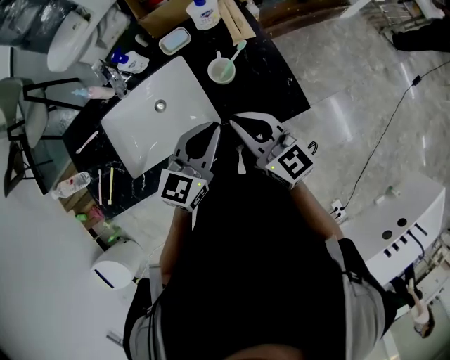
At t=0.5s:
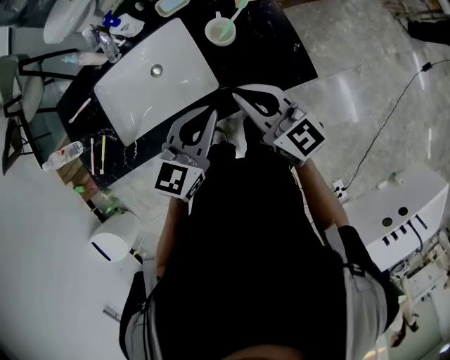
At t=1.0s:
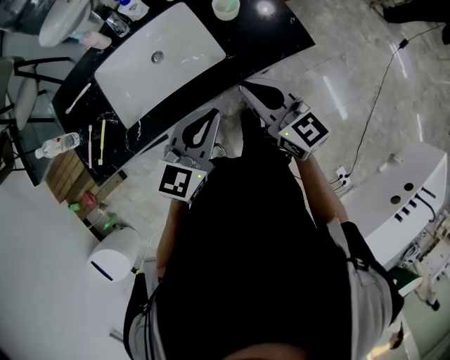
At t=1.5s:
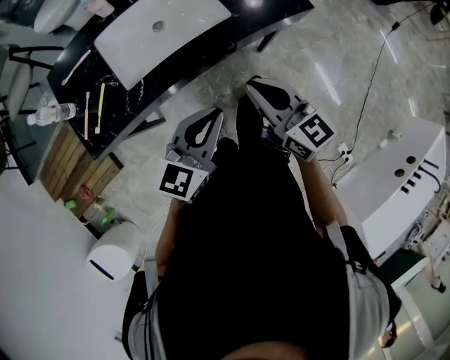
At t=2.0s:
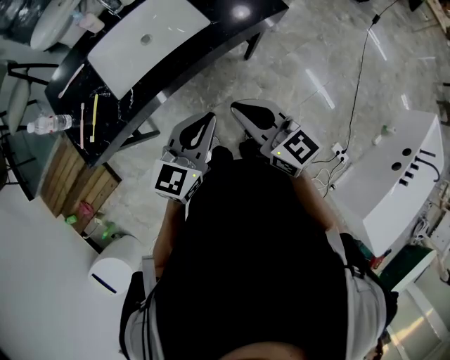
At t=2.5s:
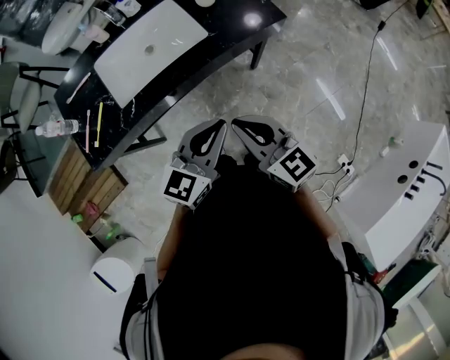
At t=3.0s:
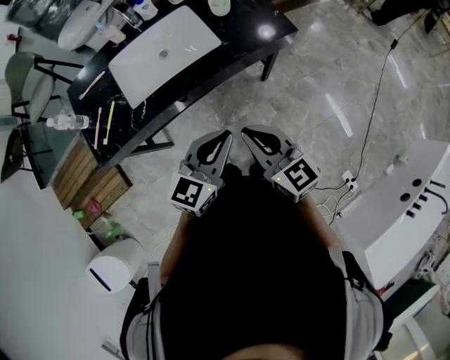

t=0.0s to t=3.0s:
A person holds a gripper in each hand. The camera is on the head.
t=0.0s to t=1.5s: The right gripper heads backward, covering about 25 cm. Meanwhile the left gripper heads backward and to the left, covering roughly 35 cm.
t=1.5s to t=3.0s: The right gripper goes some 10 cm backward. Meanwhile the left gripper goes roughly 5 cm to the right.

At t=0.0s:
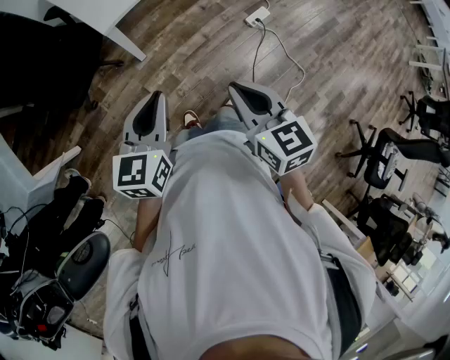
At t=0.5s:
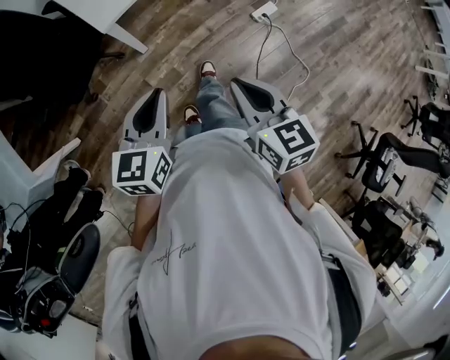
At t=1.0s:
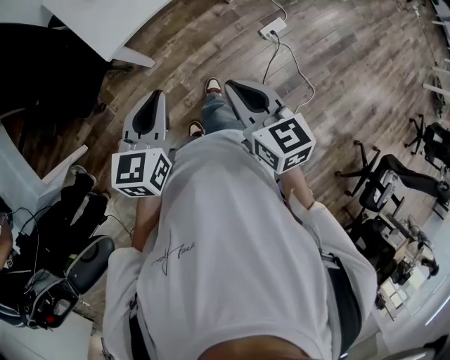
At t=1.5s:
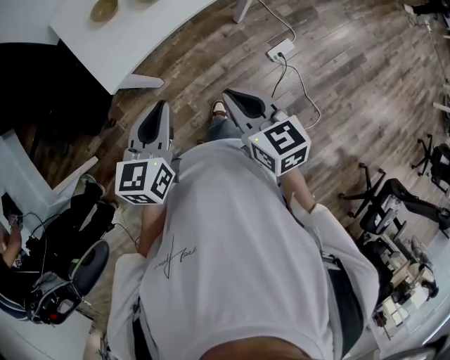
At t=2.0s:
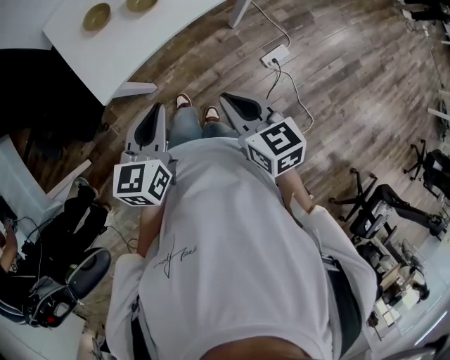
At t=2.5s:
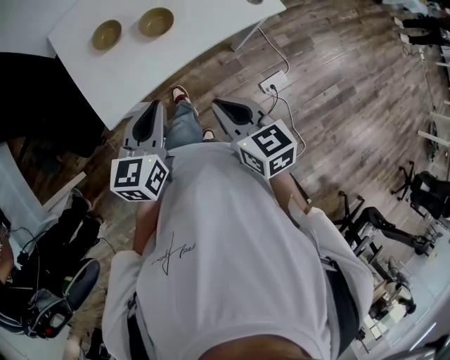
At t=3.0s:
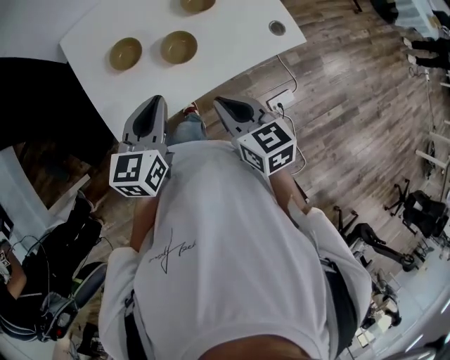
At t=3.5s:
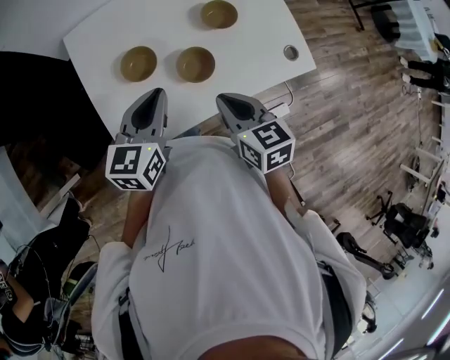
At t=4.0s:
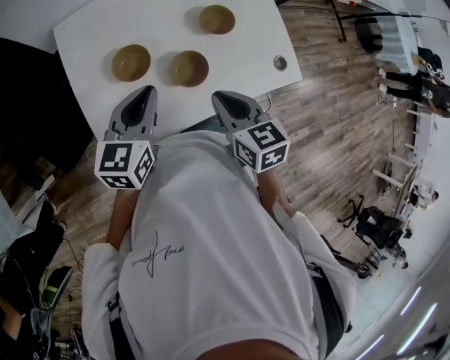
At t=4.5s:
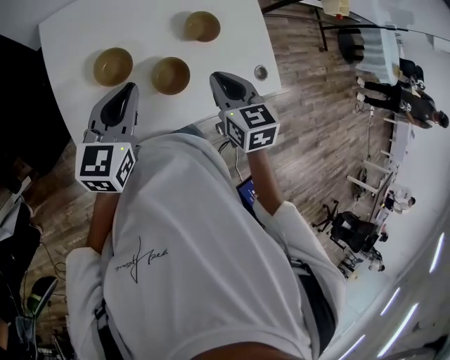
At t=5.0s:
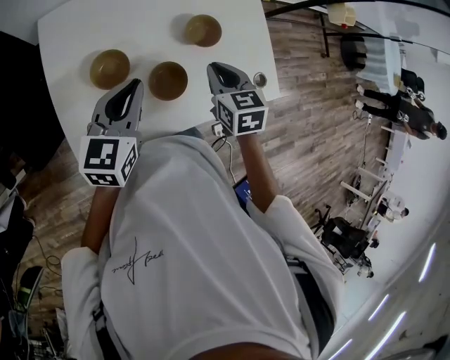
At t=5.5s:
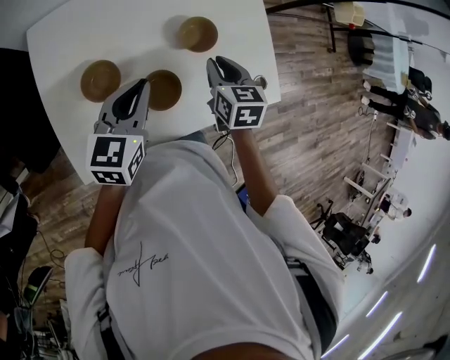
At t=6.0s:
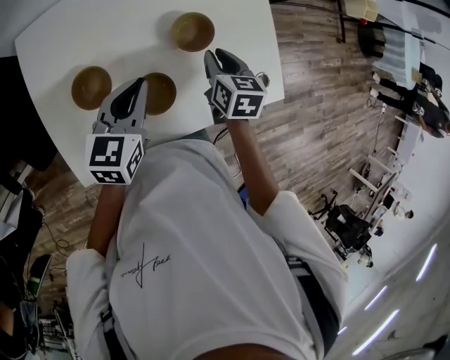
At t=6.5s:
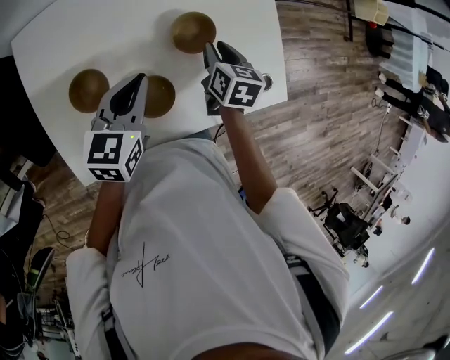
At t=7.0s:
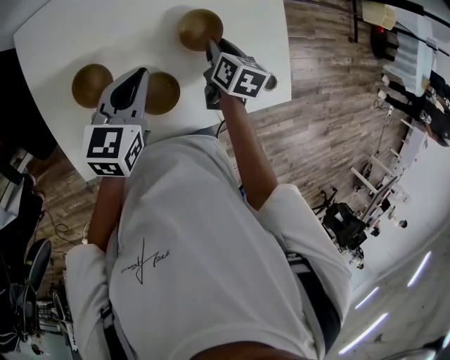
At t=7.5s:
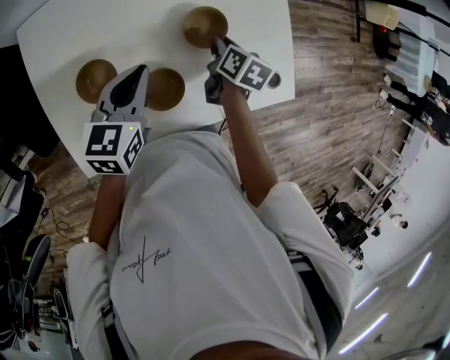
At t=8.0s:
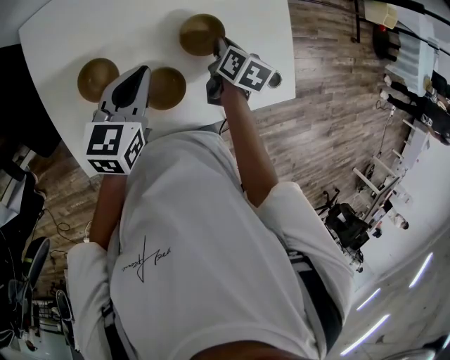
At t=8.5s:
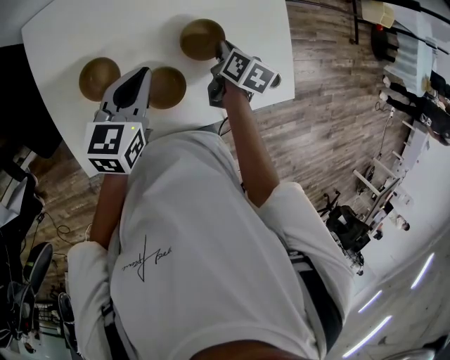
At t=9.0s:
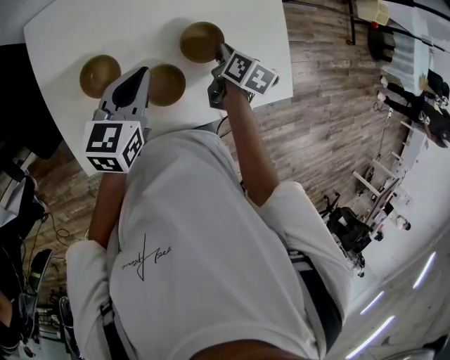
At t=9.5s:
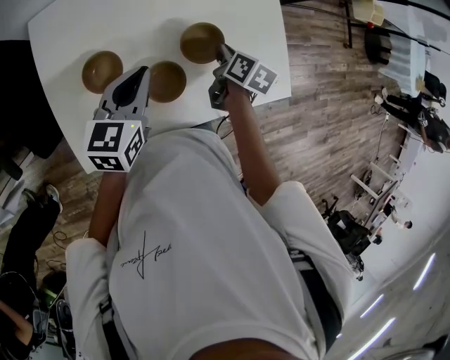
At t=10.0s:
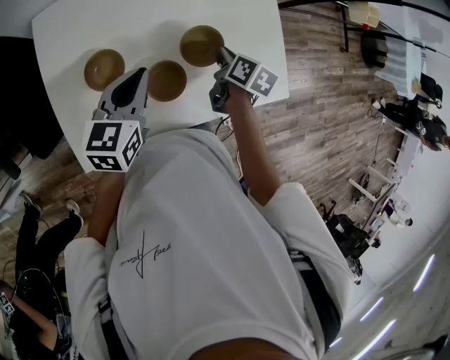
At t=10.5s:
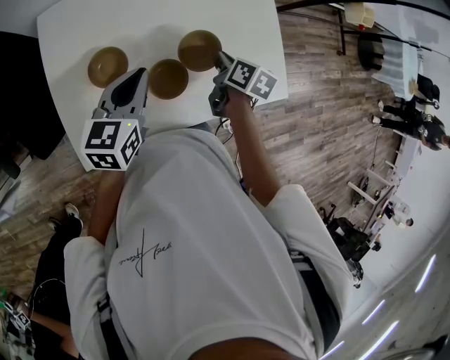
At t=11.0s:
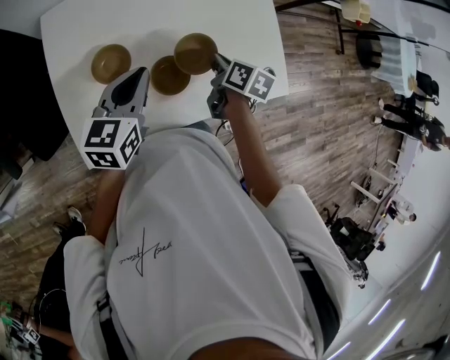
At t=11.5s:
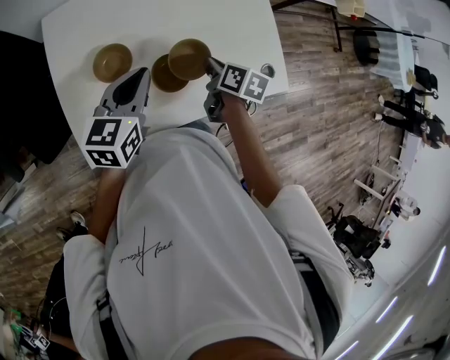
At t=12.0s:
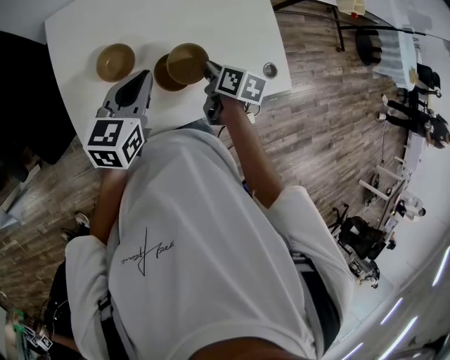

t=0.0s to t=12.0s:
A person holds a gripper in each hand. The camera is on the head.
t=0.0s to t=2.0s: The left gripper moves forward and to the right, approximately 25 cm. The right gripper heads forward, covering about 25 cm.
t=2.0s to t=4.0s: The grippers both shift forward by about 30 cm.
t=4.0s to t=6.0s: The right gripper is displaced forward, to the right and downward by about 25 cm, while the left gripper travels forward and to the right by approximately 10 cm.
t=6.0s to t=8.0s: The right gripper travels downward by roughly 5 cm, and changes its angle by approximately 20 degrees.
t=8.0s to t=10.0s: The grippers move only a little.
t=10.0s to t=12.0s: The right gripper shifts approximately 10 cm backward and to the left.

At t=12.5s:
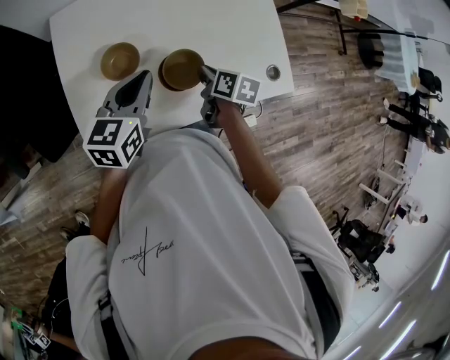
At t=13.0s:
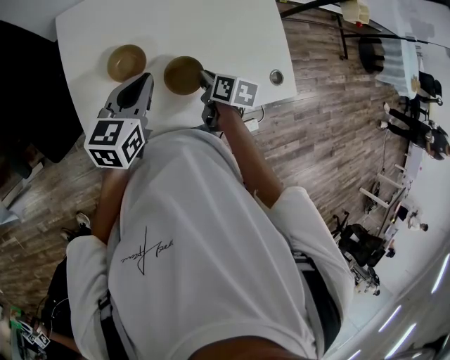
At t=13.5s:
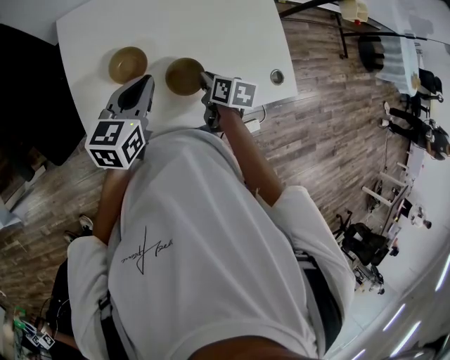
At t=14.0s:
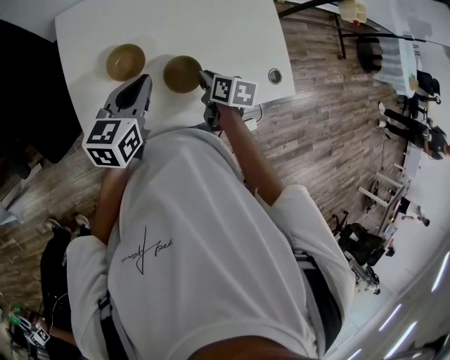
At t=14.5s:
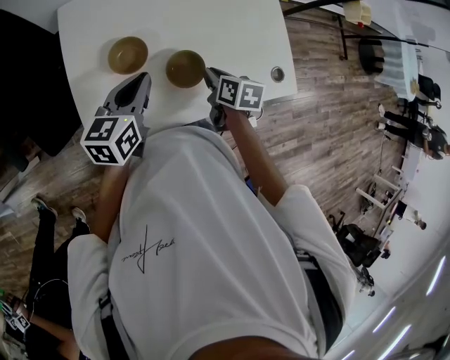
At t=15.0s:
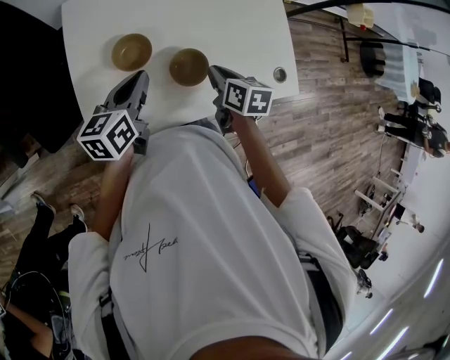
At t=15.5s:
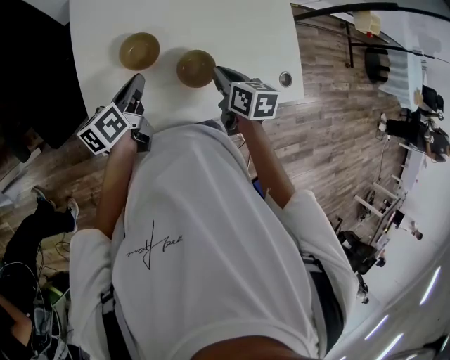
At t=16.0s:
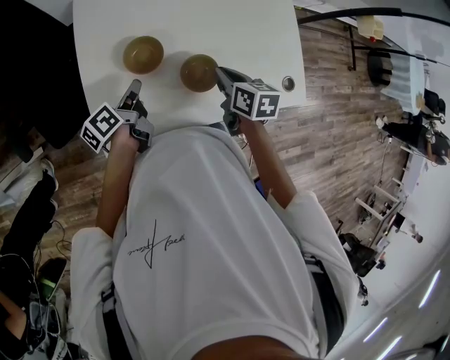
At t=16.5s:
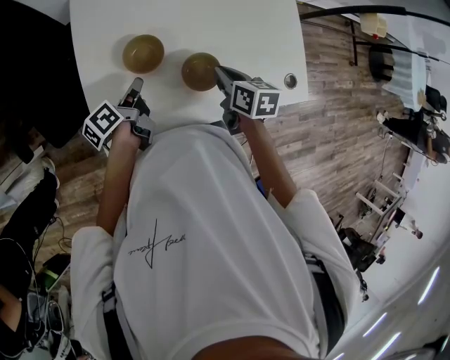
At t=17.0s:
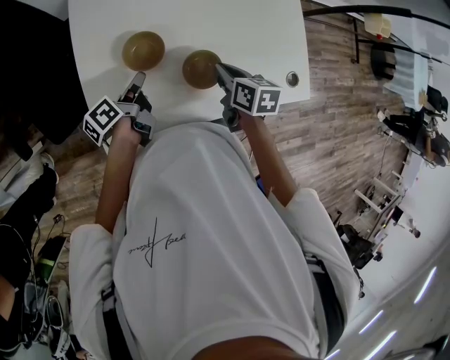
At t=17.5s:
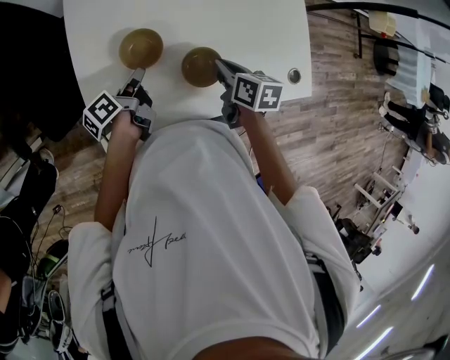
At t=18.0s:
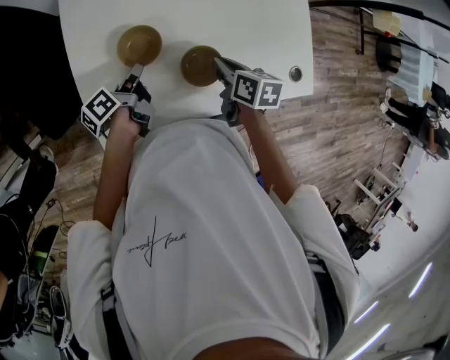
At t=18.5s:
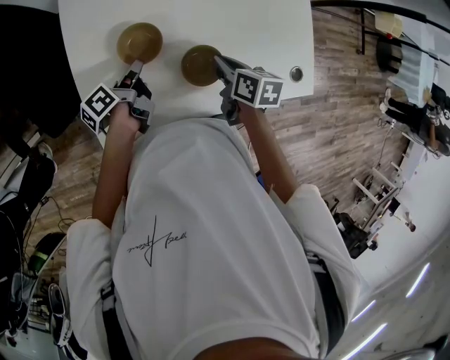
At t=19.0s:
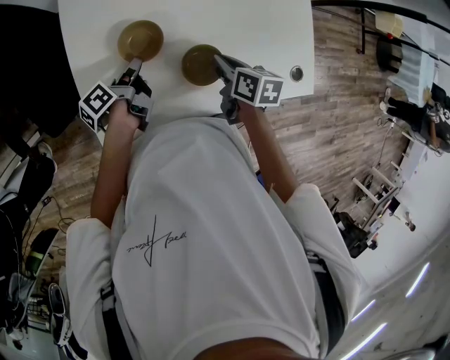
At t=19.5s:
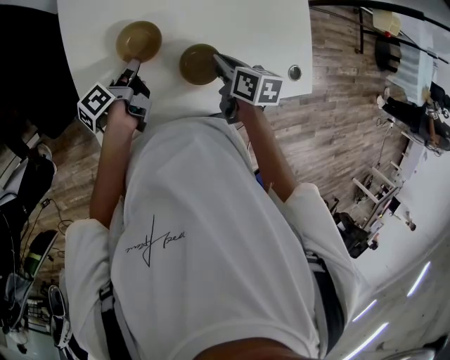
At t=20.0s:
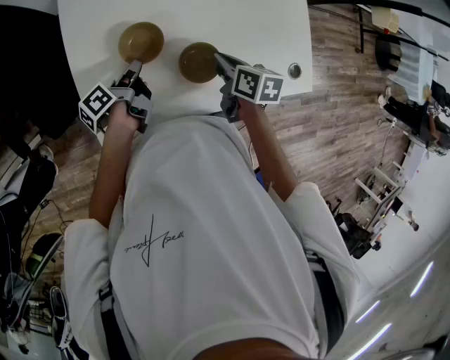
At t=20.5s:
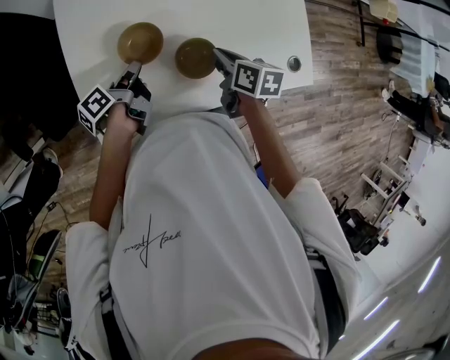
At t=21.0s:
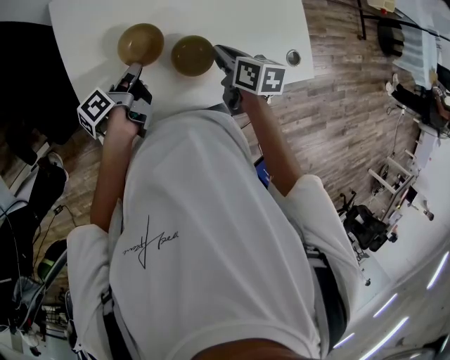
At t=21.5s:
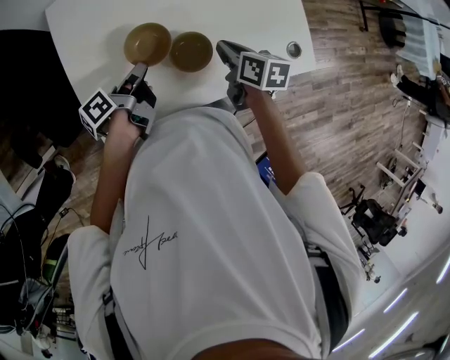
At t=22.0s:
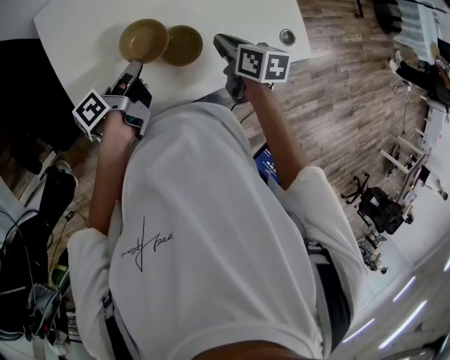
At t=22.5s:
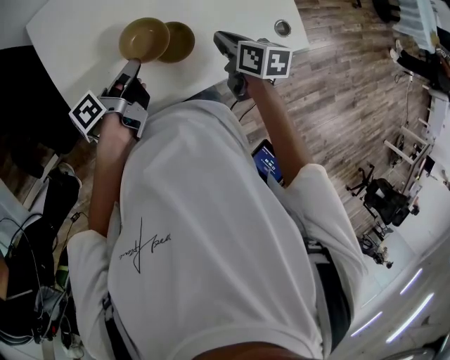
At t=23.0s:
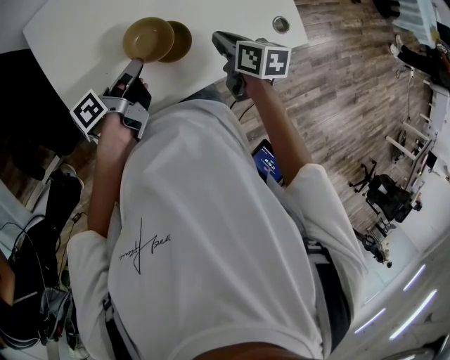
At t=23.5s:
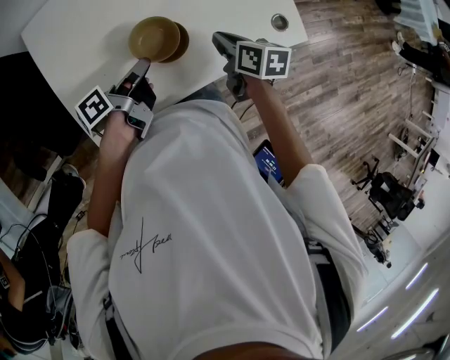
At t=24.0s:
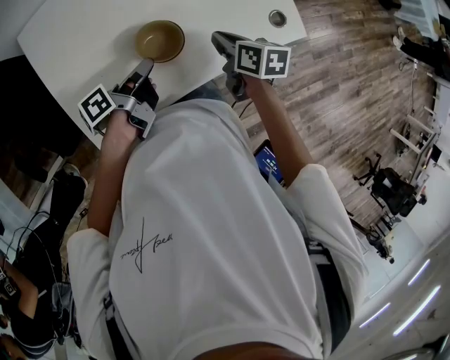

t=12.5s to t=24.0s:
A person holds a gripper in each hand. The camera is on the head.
t=12.5s to t=14.5s: There are only small adjustments of the grippers.
t=14.5s to t=16.5s: The left gripper travels downward and to the left by approximately 15 cm, and rotates around the line of its fingers by some 60 degrees, counterclockwise from behind.
t=16.5s to t=18.5s: The grippers stay close to where they were, moving slightly.
t=18.5s to t=20.0s: The two grippers keep their place.
t=20.0s to t=22.0s: Both grippers move to the right, about 5 cm.
t=22.0s to t=24.0s: The left gripper travels to the right by about 5 cm.
